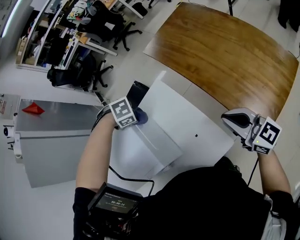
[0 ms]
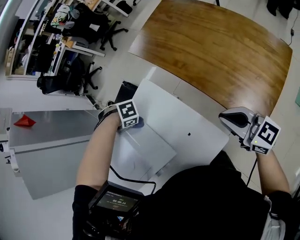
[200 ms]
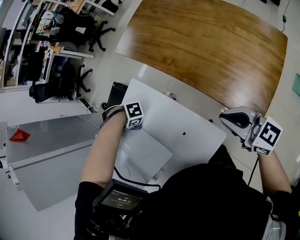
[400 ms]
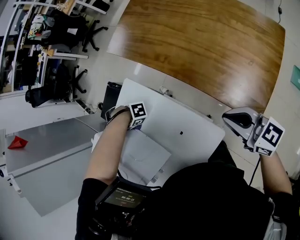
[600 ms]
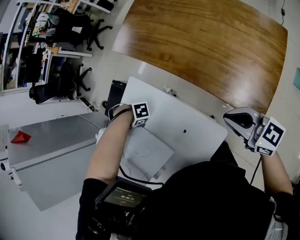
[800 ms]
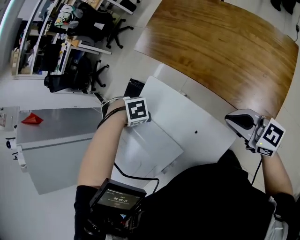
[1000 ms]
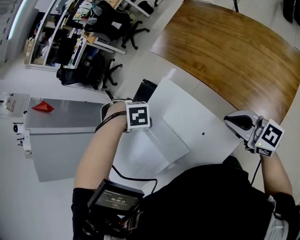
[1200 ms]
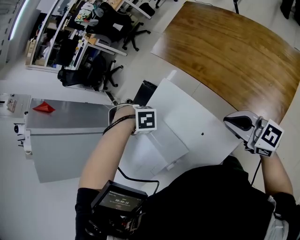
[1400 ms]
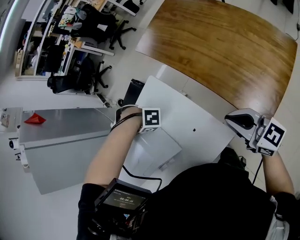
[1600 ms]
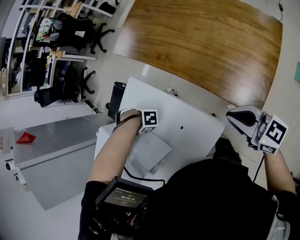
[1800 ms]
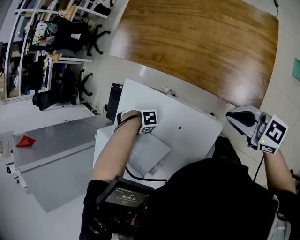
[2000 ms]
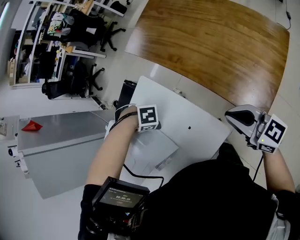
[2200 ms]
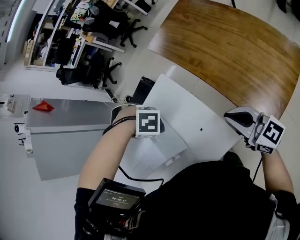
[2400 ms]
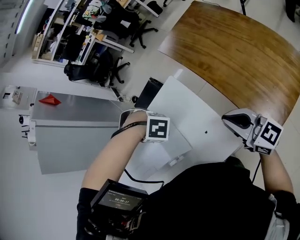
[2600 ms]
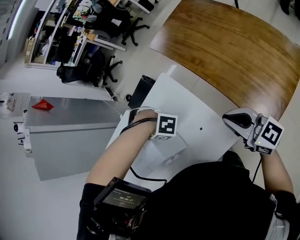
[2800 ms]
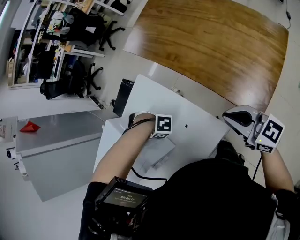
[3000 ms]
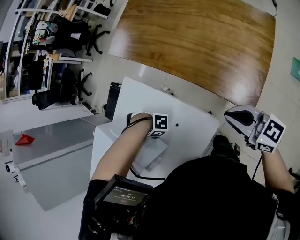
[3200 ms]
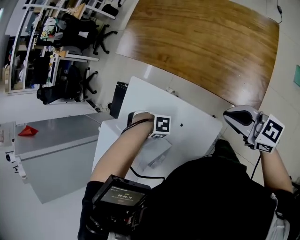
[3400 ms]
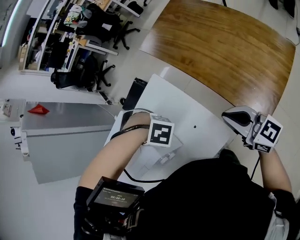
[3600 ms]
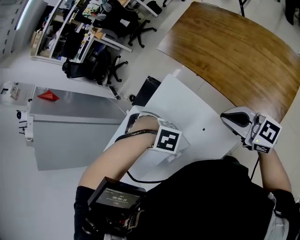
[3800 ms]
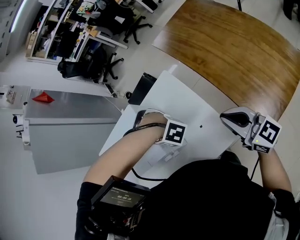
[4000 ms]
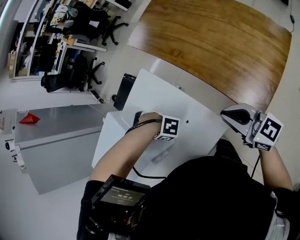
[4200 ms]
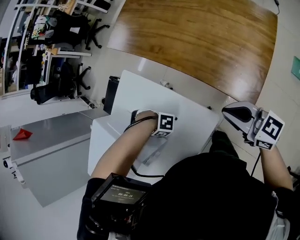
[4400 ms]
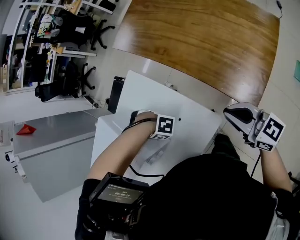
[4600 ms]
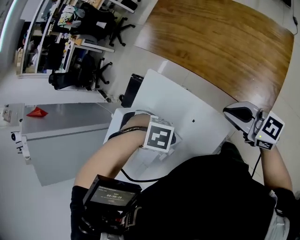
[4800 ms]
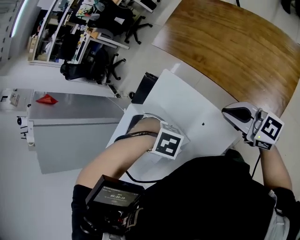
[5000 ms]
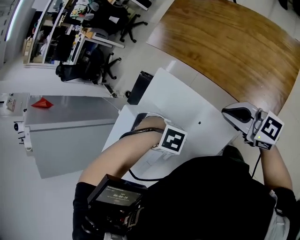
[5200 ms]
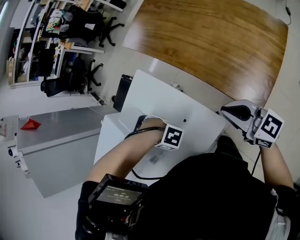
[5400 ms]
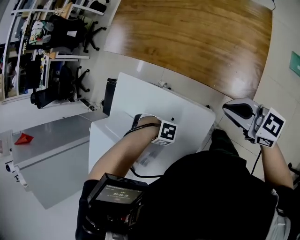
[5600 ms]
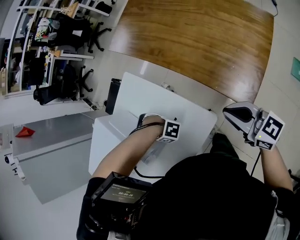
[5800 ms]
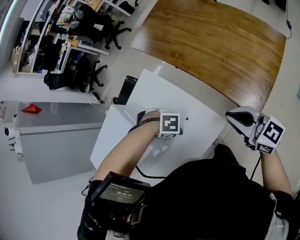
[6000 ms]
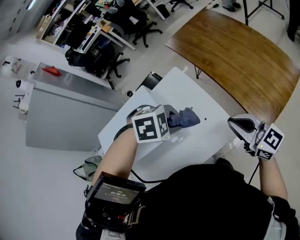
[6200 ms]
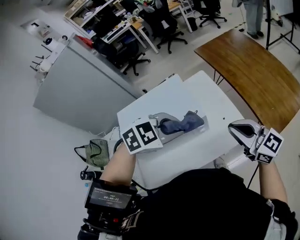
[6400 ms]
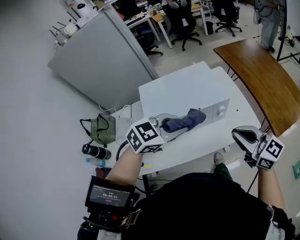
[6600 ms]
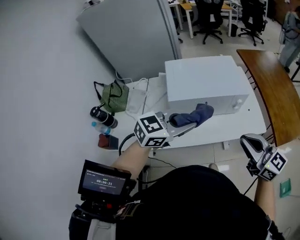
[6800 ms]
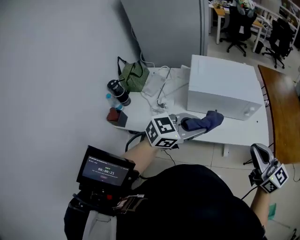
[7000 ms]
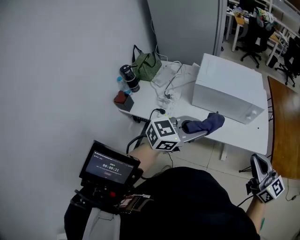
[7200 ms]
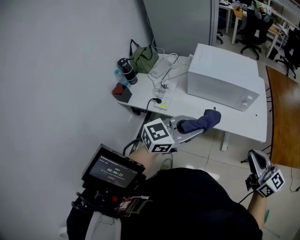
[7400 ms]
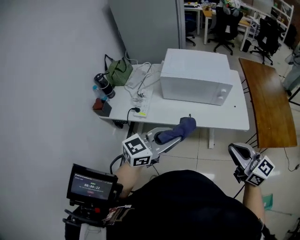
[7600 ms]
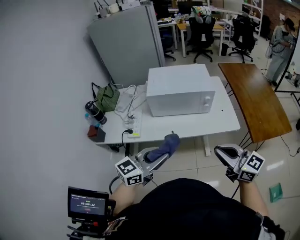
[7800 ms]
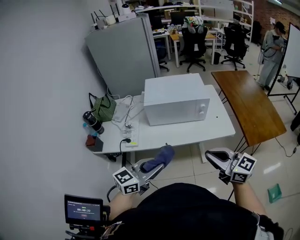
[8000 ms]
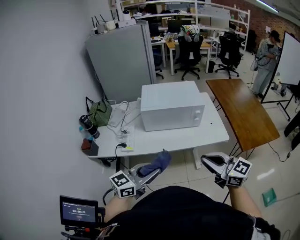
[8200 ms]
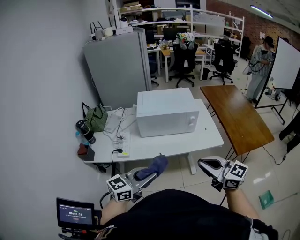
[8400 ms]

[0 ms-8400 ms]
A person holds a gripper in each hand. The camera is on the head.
0 ms to 1400 ms: The left gripper shifts roughly 5 cm to the left, travels downward and back again, about 15 cm each way, and turns by roughly 30 degrees. The right gripper goes downward and returns, about 10 cm each way.
1400 ms to 2800 ms: The right gripper reaches about 10 cm backward, then returns. Meanwhile the left gripper swings up and down, some 20 cm each way, with 2 reversals.
2800 ms to 4200 ms: The right gripper swings forward and backward, some 10 cm each way, with 2 reversals; the left gripper moves up and down over about 20 cm, changing direction 2 times.
4200 ms to 5600 ms: The left gripper swings up and down, roughly 20 cm each way, with 2 reversals. The right gripper swings forward and backward, approximately 10 cm each way, with 2 reversals.
5600 ms to 7000 ms: The right gripper changes place by approximately 50 cm, and rotates approximately 40 degrees, while the left gripper goes some 35 cm upward, and rotates roughly 150 degrees.
7000 ms to 8400 ms: The left gripper travels backward by approximately 15 cm; the right gripper shifts roughly 10 cm backward, and reaches approximately 10 cm upward, then returns.

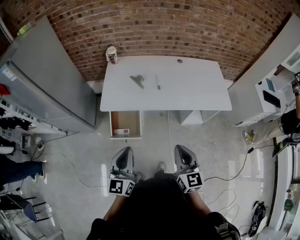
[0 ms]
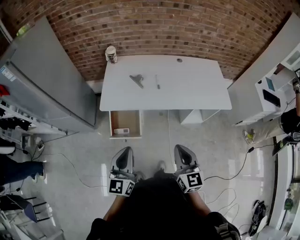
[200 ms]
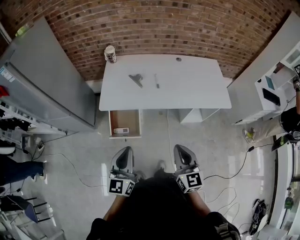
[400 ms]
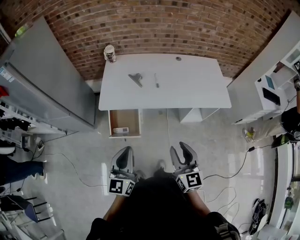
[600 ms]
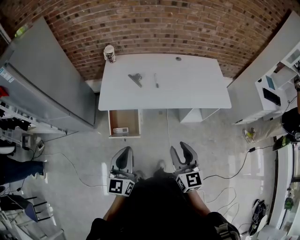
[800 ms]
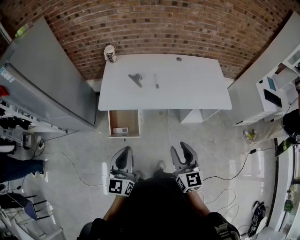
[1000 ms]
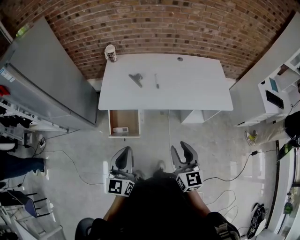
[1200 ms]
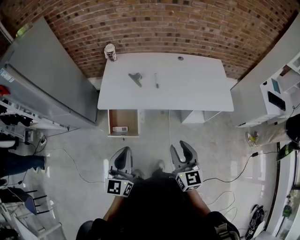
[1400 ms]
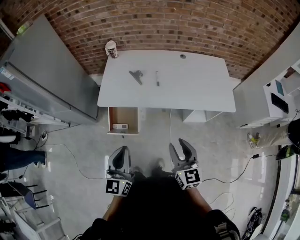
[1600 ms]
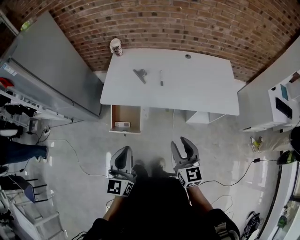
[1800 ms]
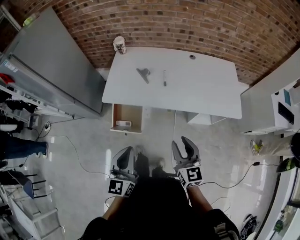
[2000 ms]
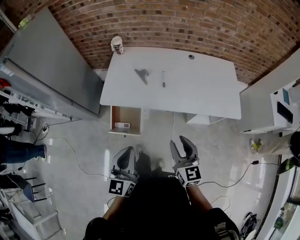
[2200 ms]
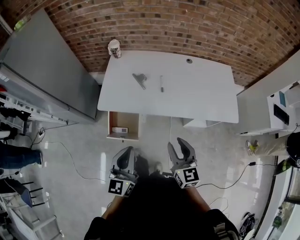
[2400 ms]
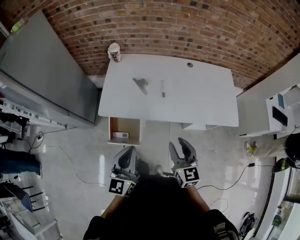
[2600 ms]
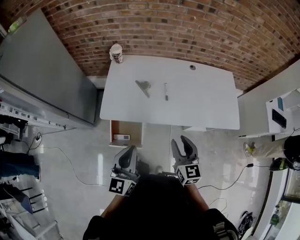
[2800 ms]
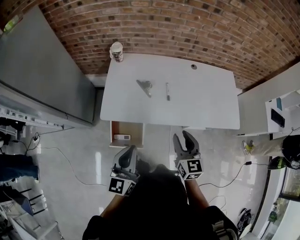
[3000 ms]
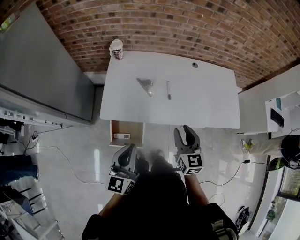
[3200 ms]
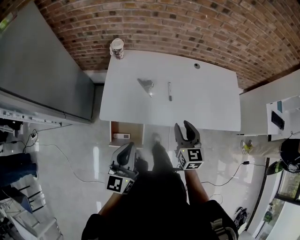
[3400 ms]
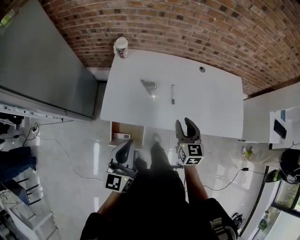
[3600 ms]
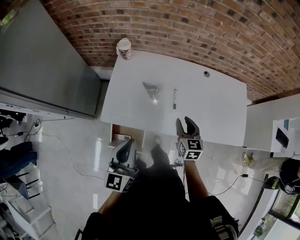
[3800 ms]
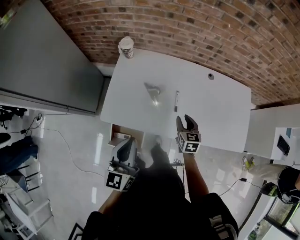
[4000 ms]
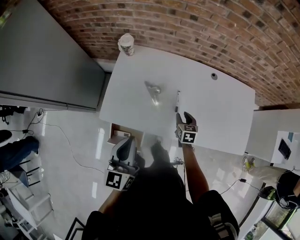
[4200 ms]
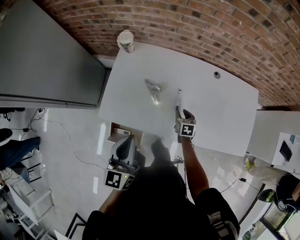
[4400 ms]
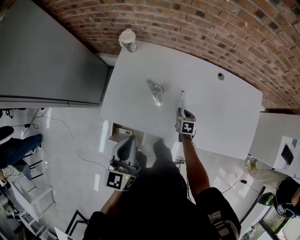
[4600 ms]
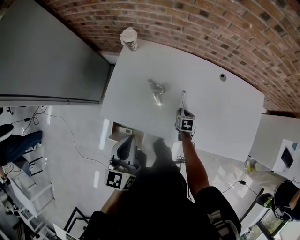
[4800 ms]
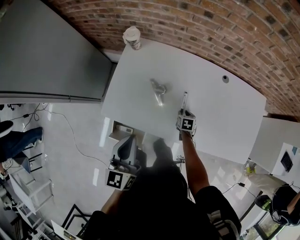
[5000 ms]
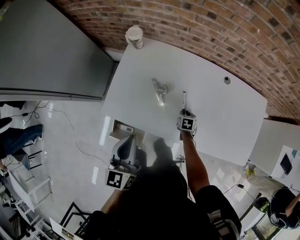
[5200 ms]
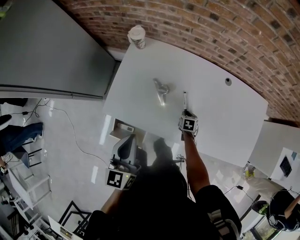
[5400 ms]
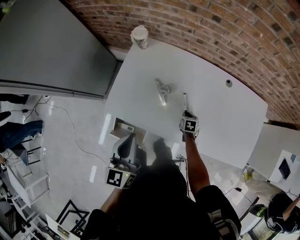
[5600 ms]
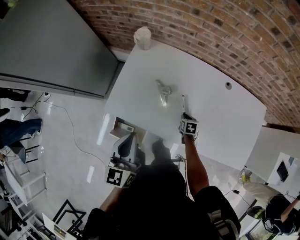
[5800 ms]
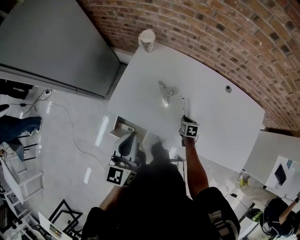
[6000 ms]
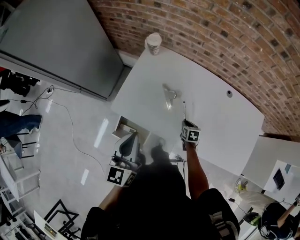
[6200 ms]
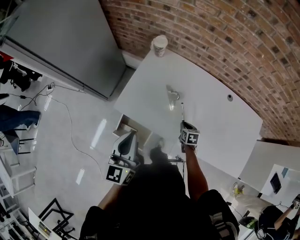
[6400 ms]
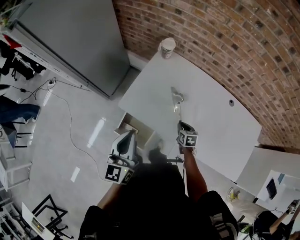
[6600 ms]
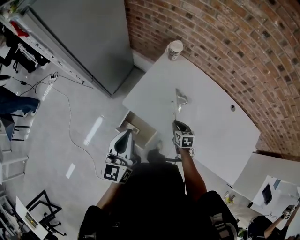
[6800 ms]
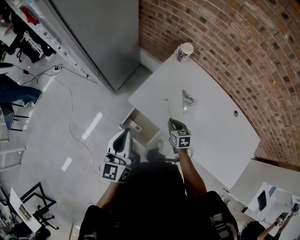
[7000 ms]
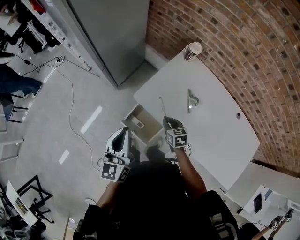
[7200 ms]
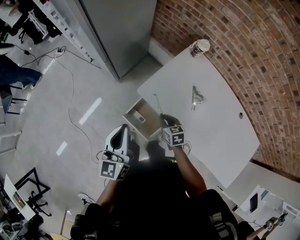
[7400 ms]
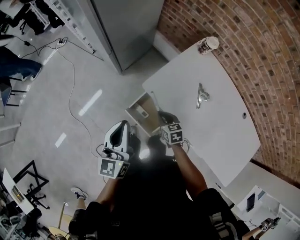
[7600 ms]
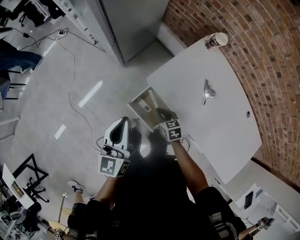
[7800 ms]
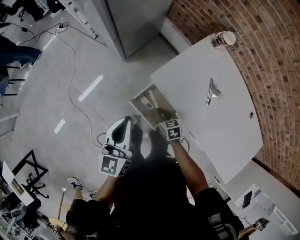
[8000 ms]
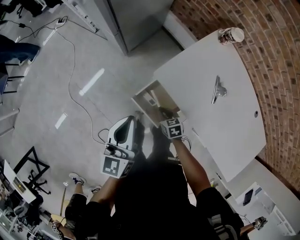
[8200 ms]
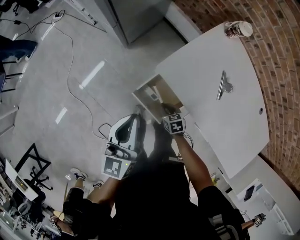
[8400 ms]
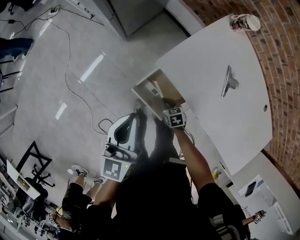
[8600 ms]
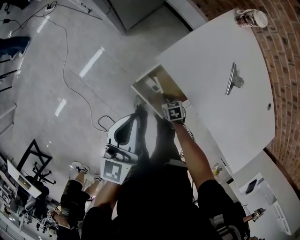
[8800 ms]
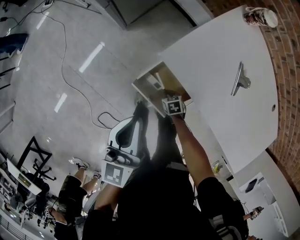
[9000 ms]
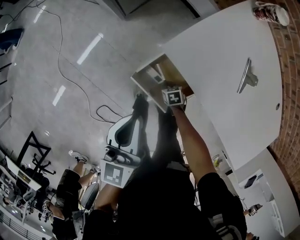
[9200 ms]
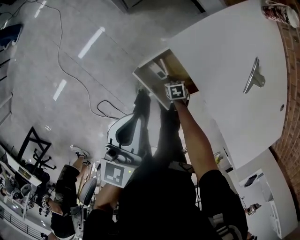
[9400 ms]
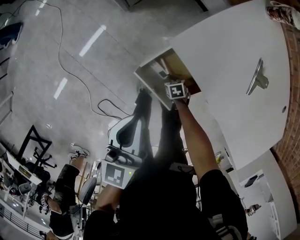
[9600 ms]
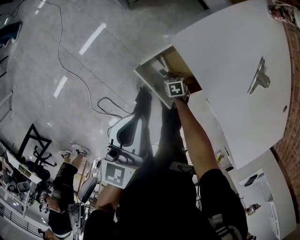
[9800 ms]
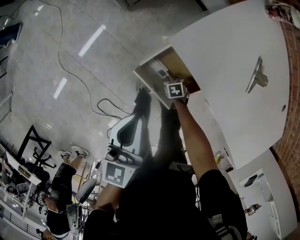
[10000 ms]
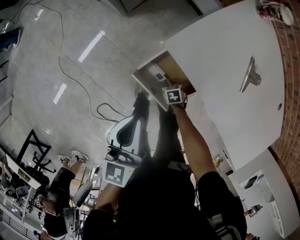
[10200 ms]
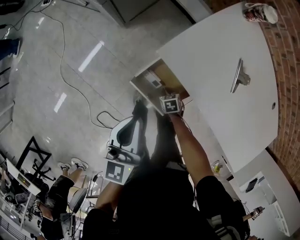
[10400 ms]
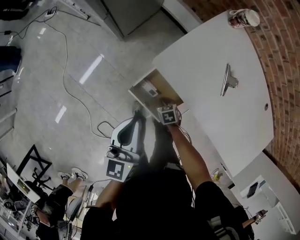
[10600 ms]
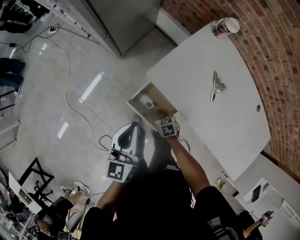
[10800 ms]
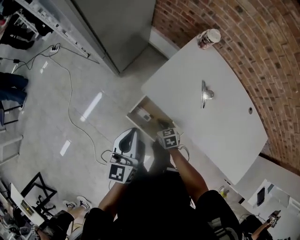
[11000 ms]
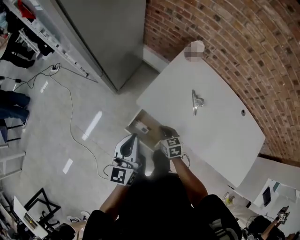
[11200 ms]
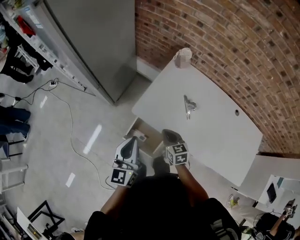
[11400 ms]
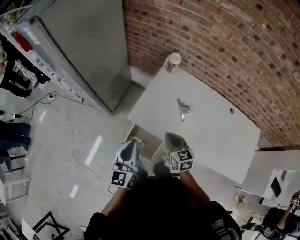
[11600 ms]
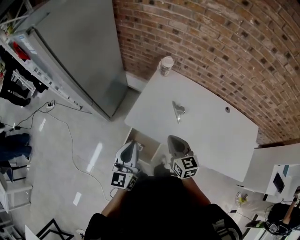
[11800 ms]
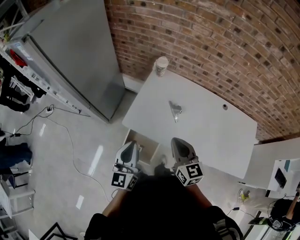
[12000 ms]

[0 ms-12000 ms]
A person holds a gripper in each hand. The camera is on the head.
0 ms to 1600 ms: Both grippers move to the right, about 5 cm. The right gripper opens up.
1600 ms to 3000 ms: The two grippers go roughly 20 cm forward.
3000 ms to 4400 ms: The left gripper goes some 20 cm forward, while the right gripper moves downward and forward, about 40 cm, and tilts its fingers about 30 degrees downward.
4400 ms to 6000 ms: The right gripper moves downward, some 5 cm.
6000 ms to 7600 ms: The left gripper shifts by some 25 cm, and changes its angle by about 30 degrees. The right gripper shifts by about 40 cm, and changes its angle by about 40 degrees.
7600 ms to 9000 ms: The right gripper shifts some 30 cm downward, and changes its angle by about 30 degrees. Meanwhile the left gripper shifts approximately 15 cm downward.
9000 ms to 10400 ms: The right gripper goes downward and returns, some 10 cm each way.
10400 ms to 12000 ms: The left gripper heads upward, covering some 20 cm, and changes its angle by some 30 degrees; the right gripper is displaced upward by about 60 cm, and tilts its fingers some 60 degrees upward.

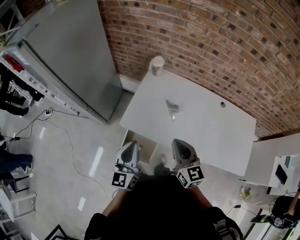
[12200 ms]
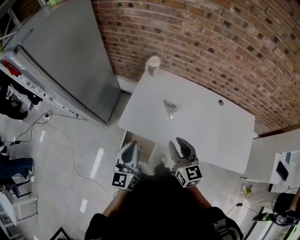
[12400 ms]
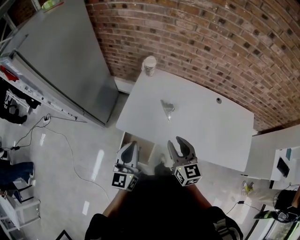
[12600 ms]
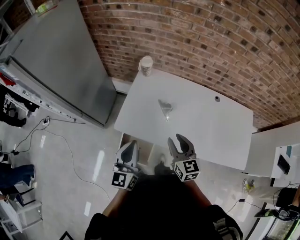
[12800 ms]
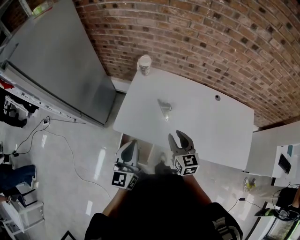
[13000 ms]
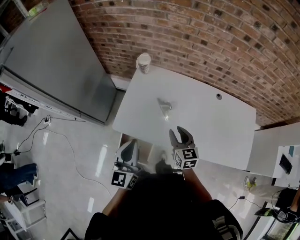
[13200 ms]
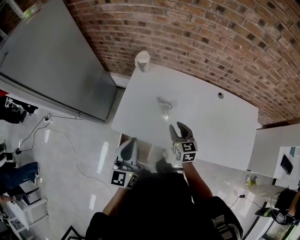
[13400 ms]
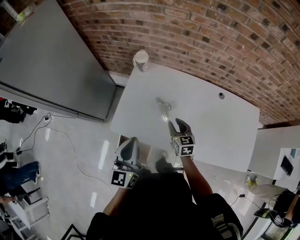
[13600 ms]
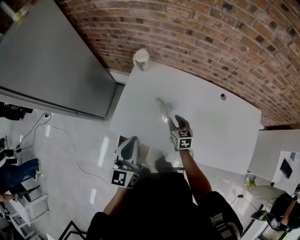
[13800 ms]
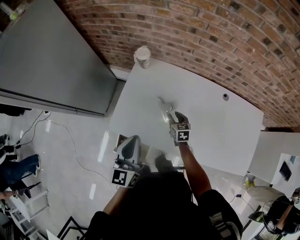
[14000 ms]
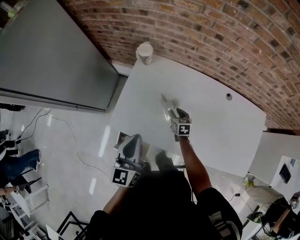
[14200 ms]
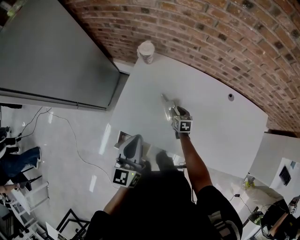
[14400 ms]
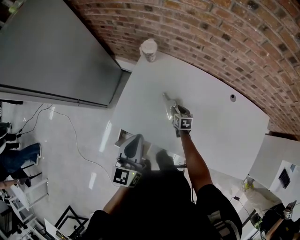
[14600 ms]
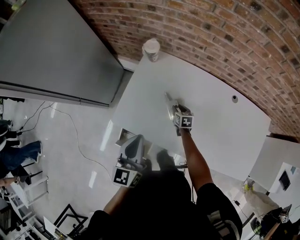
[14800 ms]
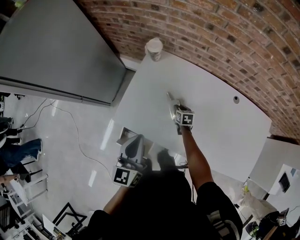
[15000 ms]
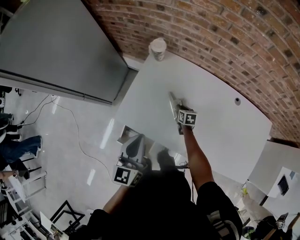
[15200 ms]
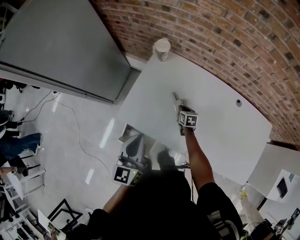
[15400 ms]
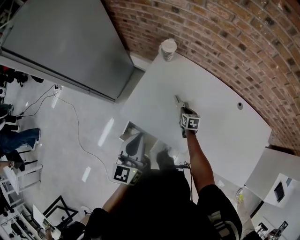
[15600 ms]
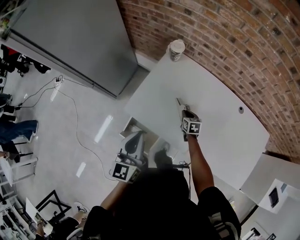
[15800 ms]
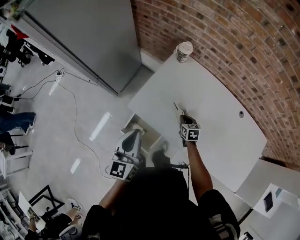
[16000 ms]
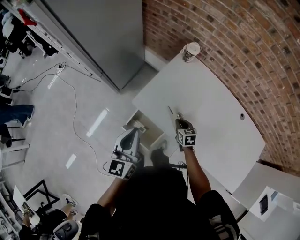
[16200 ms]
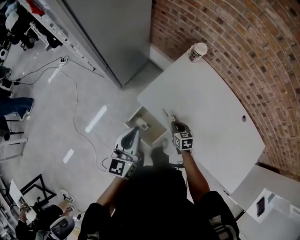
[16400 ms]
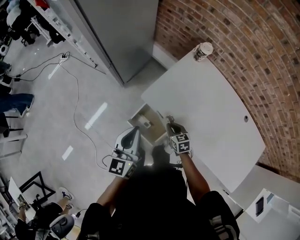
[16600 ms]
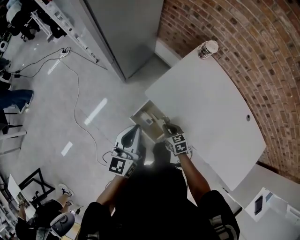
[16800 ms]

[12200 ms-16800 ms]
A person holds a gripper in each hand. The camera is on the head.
12200 ms to 13800 ms: The left gripper is displaced forward and to the right by approximately 15 cm, while the right gripper goes approximately 30 cm downward, forward and to the right, changes its angle by approximately 20 degrees, and opens its fingers.
13800 ms to 15200 ms: The right gripper heads downward and forward, covering about 15 cm.
15200 ms to 16800 ms: The left gripper is displaced to the left by about 20 cm; the right gripper shifts some 35 cm to the left and backward, and swivels some 40 degrees.
